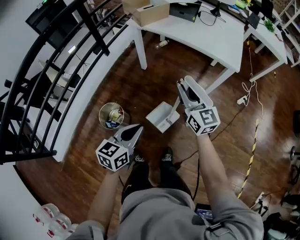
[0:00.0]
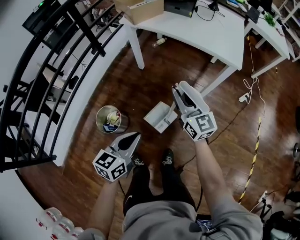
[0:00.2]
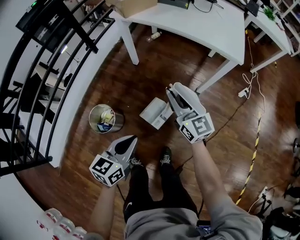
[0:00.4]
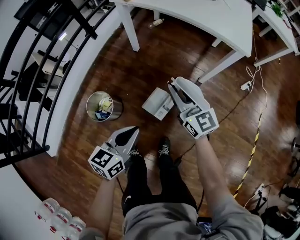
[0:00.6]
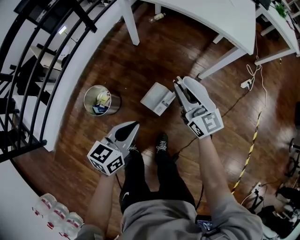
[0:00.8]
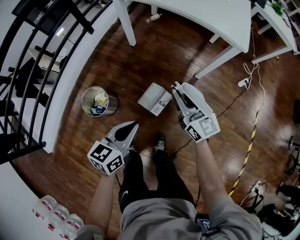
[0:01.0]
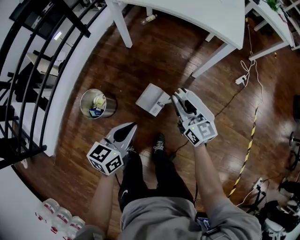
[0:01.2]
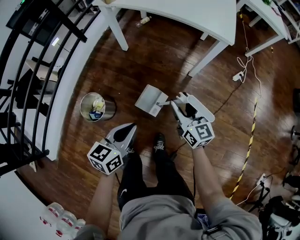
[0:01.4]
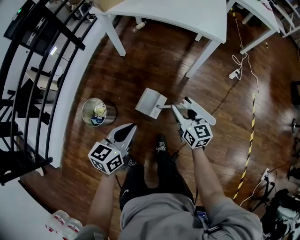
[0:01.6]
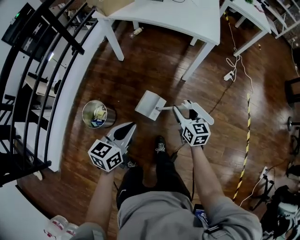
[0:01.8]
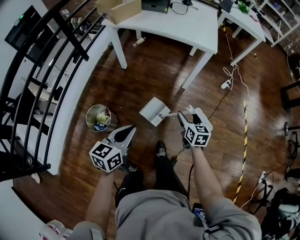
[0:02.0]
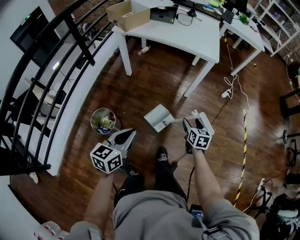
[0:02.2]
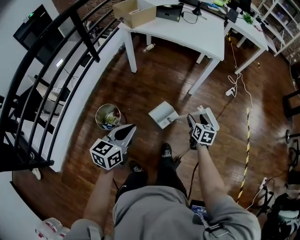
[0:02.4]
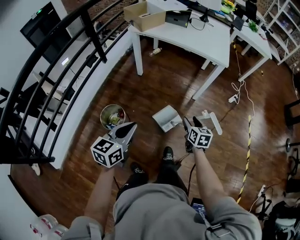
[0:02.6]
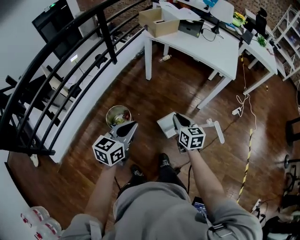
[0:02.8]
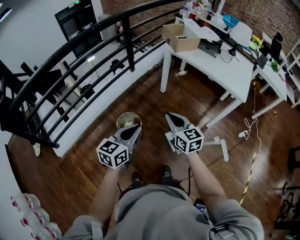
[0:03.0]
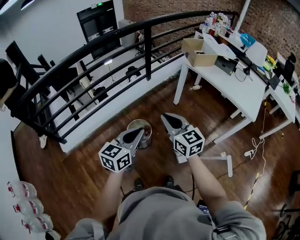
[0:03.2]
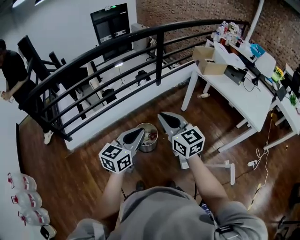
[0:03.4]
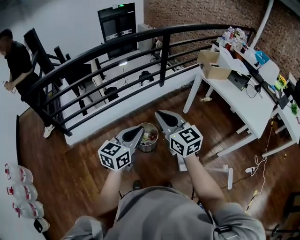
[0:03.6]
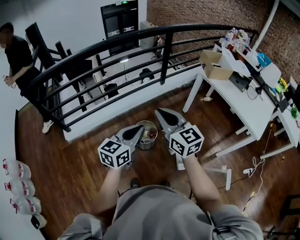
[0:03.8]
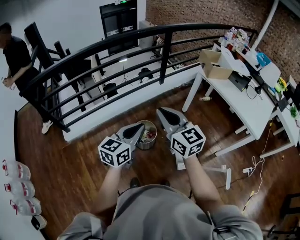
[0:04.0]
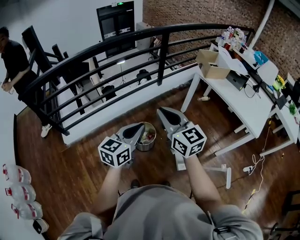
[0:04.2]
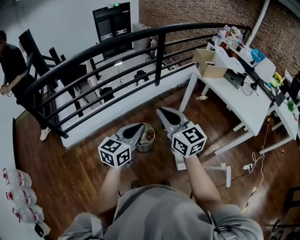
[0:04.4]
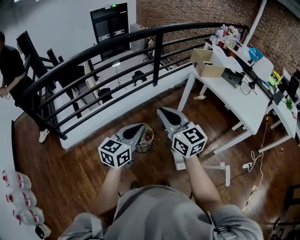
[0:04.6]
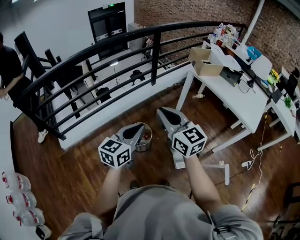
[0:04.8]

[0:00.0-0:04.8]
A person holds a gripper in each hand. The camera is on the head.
0:00.0 to 0:01.6: The left gripper goes approximately 10 cm to the right and downward, while the right gripper travels downward, to the right and backward by approximately 25 cm, swivels approximately 20 degrees, and opens up.
0:01.6 to 0:03.2: The left gripper moves about 35 cm, and changes its angle by roughly 30 degrees, while the right gripper moves about 50 cm, changes its angle by some 40 degrees, and closes up.
0:03.2 to 0:04.8: The right gripper heads upward, covering about 10 cm.

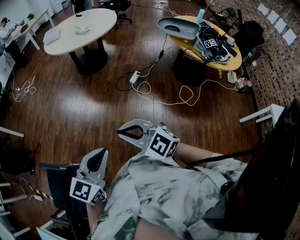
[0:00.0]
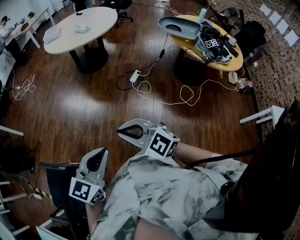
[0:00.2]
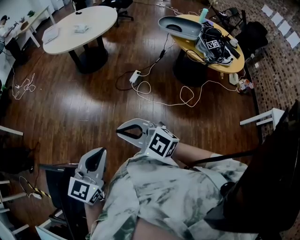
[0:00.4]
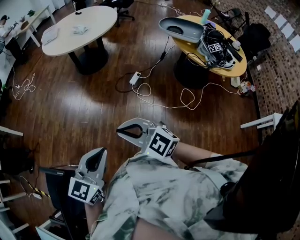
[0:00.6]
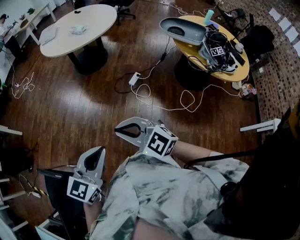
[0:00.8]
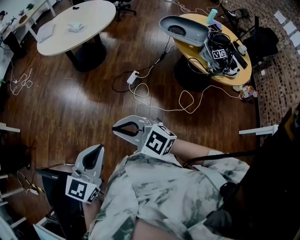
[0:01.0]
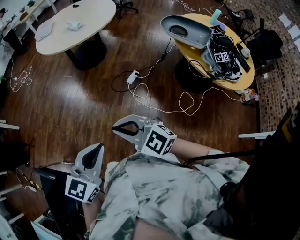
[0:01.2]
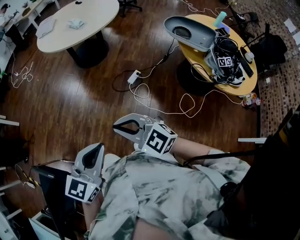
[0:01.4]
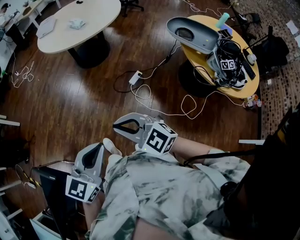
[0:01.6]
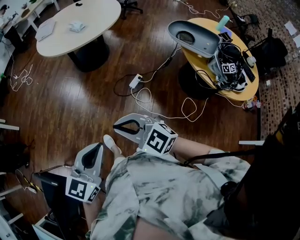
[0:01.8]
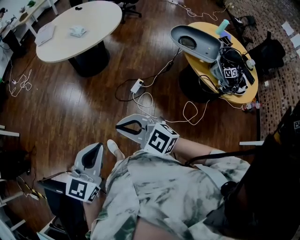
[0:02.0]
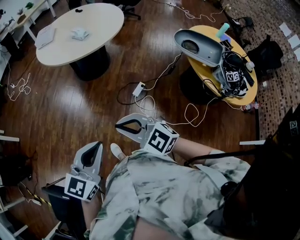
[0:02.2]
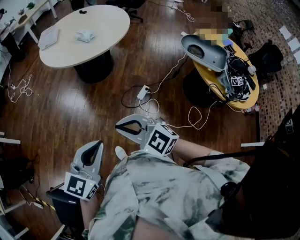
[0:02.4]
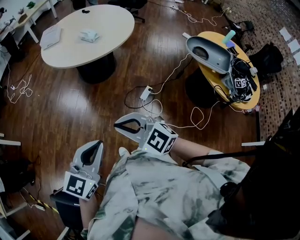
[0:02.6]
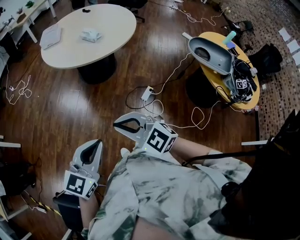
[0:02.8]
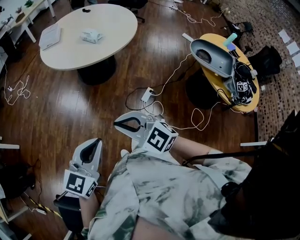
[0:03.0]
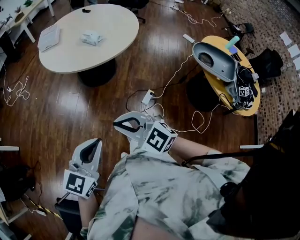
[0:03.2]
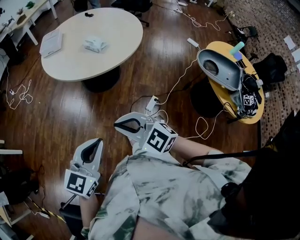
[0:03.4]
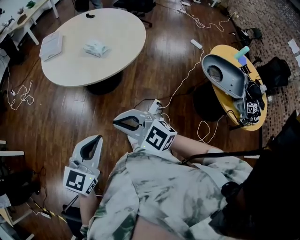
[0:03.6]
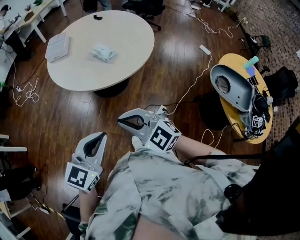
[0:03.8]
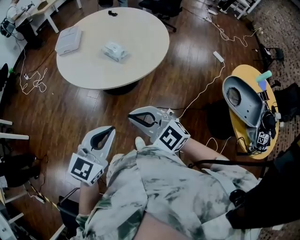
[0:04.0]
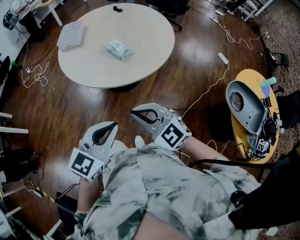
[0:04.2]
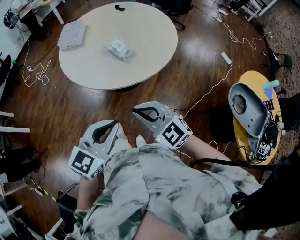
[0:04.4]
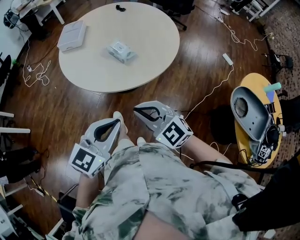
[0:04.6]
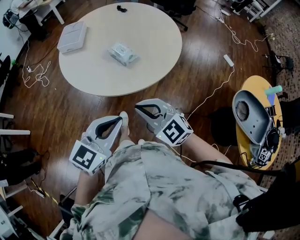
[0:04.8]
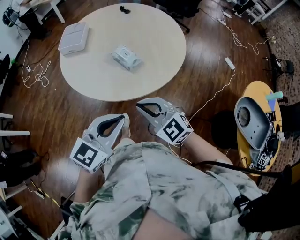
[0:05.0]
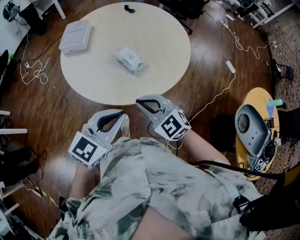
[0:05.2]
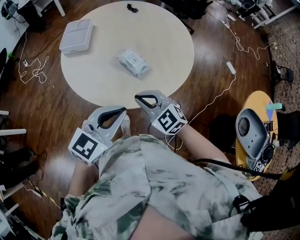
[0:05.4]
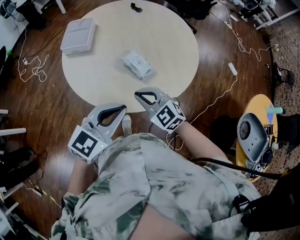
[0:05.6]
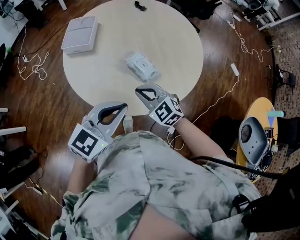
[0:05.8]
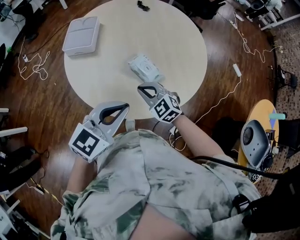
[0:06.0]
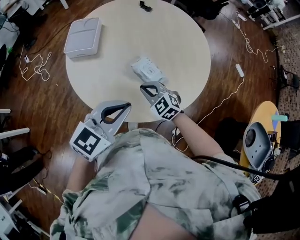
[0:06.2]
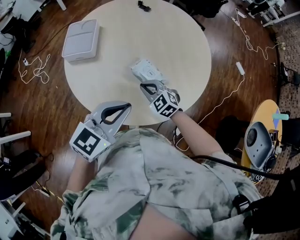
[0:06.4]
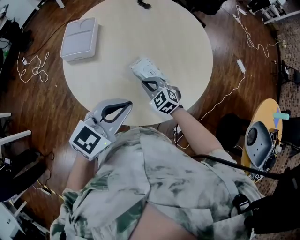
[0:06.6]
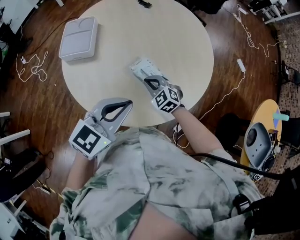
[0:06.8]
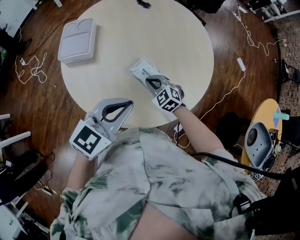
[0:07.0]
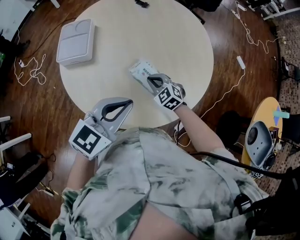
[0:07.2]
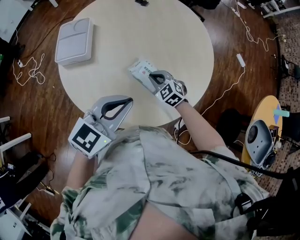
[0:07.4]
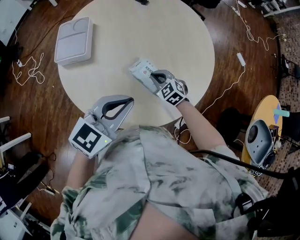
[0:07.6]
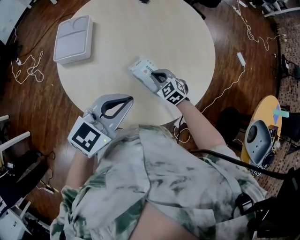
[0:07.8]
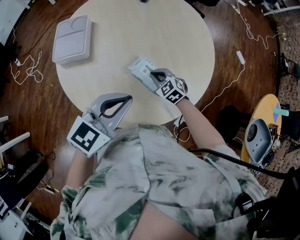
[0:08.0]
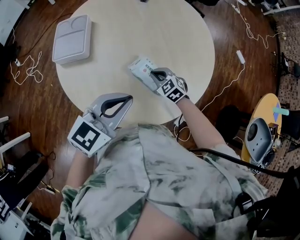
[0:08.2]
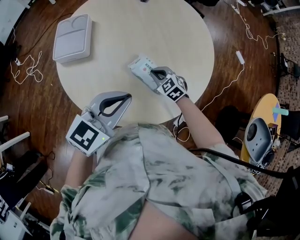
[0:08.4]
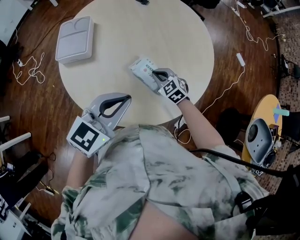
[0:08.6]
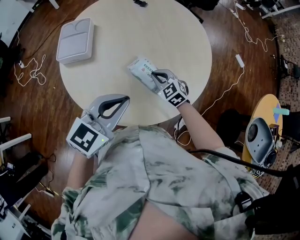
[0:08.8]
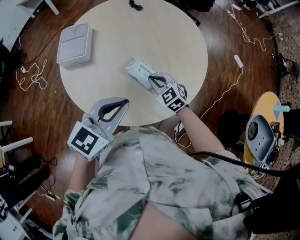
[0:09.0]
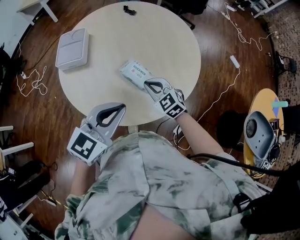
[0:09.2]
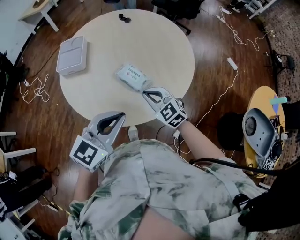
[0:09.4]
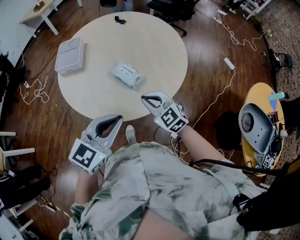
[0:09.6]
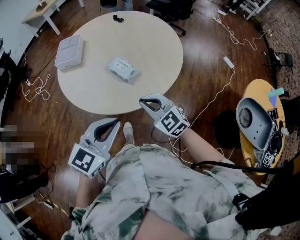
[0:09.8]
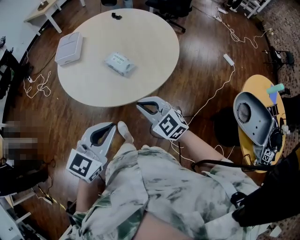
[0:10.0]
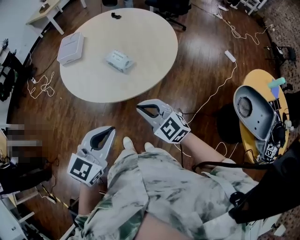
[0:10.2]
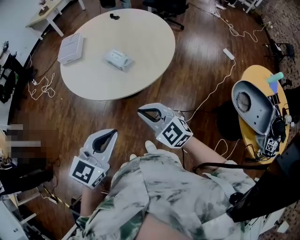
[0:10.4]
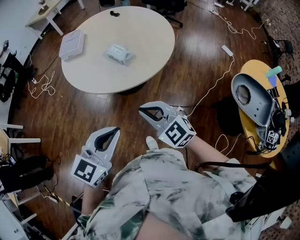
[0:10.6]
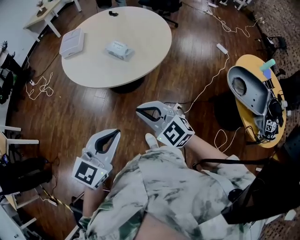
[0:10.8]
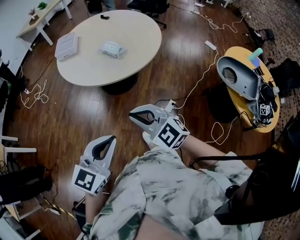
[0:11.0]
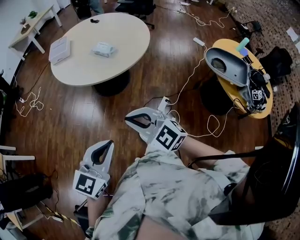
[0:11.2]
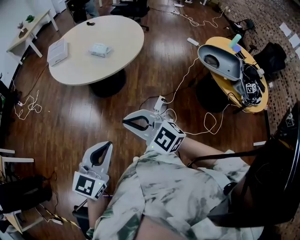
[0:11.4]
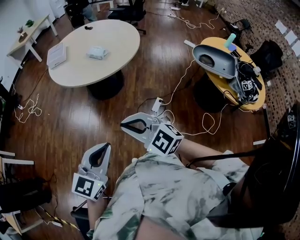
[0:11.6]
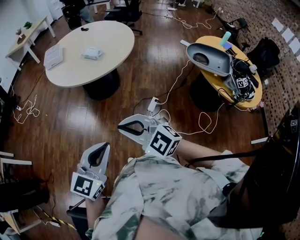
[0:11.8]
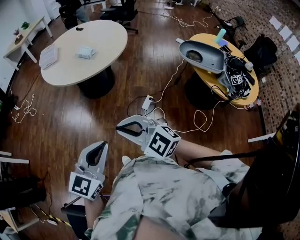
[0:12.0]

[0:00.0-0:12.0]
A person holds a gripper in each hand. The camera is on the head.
0:00.0 to 0:01.6: Both grippers travel together forward and to the right, about 25 cm.
0:01.6 to 0:03.0: Both grippers move forward and to the left, roughly 30 cm.
0:03.0 to 0:04.4: The grippers both shift forward by approximately 30 cm.
0:04.4 to 0:06.0: The right gripper heads forward and downward, covering approximately 35 cm; the left gripper shifts about 30 cm forward.
0:06.0 to 0:07.6: The right gripper moves forward and downward, approximately 15 cm. Meanwhile the left gripper is displaced forward by about 10 cm.
0:07.6 to 0:09.0: The left gripper moves about 5 cm. The right gripper goes about 10 cm upward.
0:09.0 to 0:10.4: The right gripper heads backward and upward, covering about 40 cm; the left gripper heads backward, covering approximately 30 cm.
0:10.4 to 0:12.0: Both grippers move backward, approximately 35 cm.

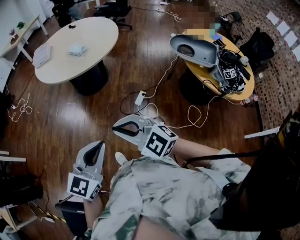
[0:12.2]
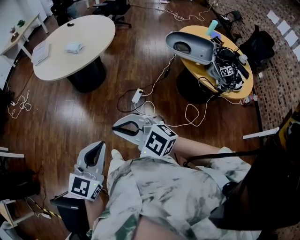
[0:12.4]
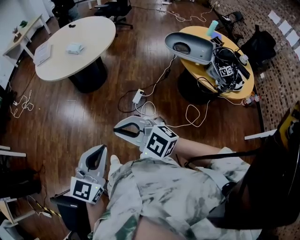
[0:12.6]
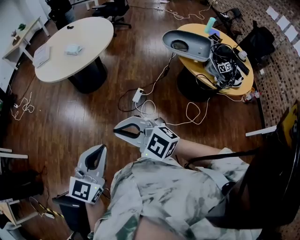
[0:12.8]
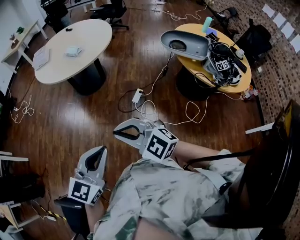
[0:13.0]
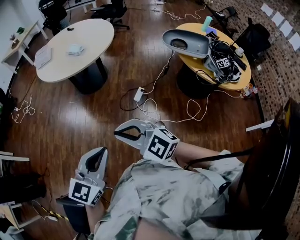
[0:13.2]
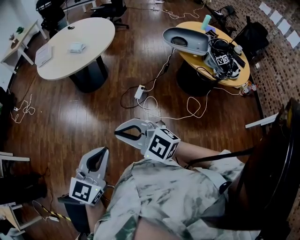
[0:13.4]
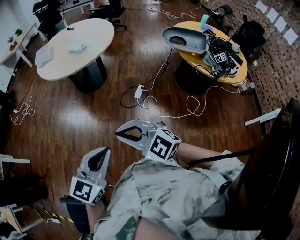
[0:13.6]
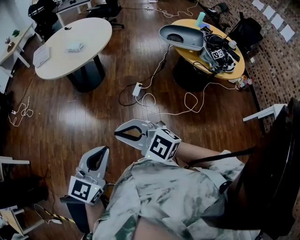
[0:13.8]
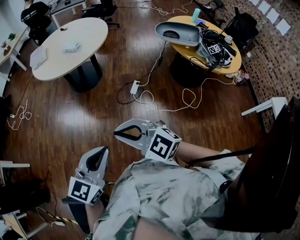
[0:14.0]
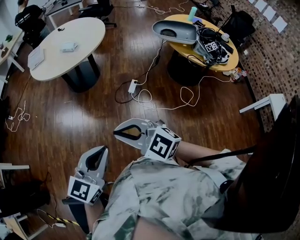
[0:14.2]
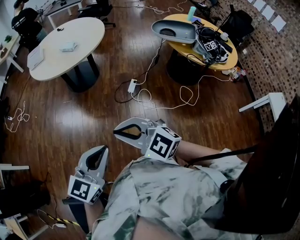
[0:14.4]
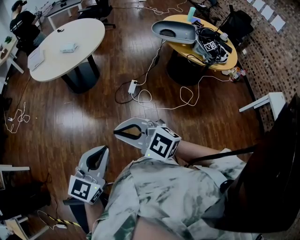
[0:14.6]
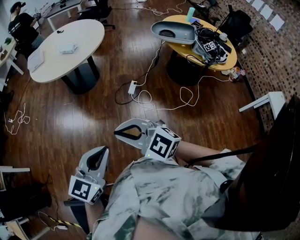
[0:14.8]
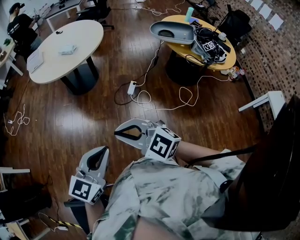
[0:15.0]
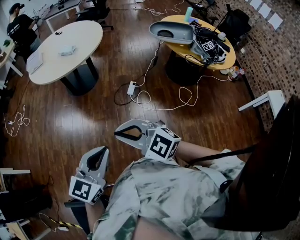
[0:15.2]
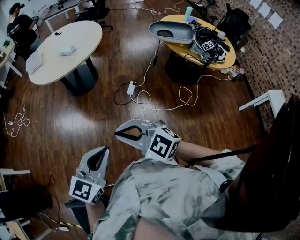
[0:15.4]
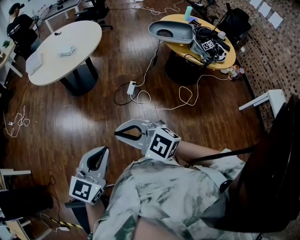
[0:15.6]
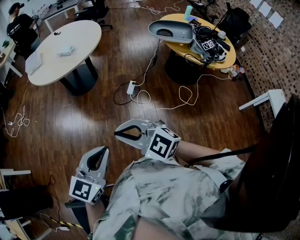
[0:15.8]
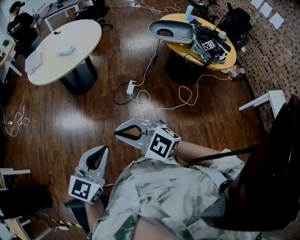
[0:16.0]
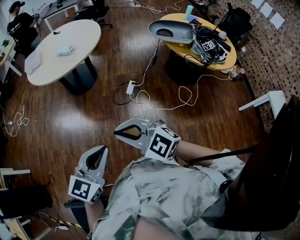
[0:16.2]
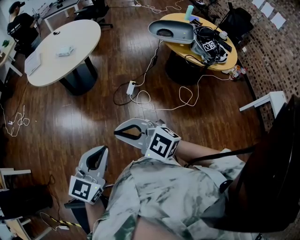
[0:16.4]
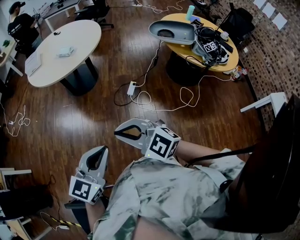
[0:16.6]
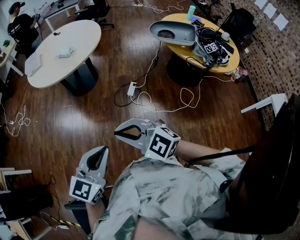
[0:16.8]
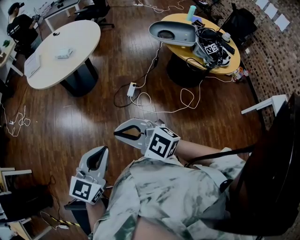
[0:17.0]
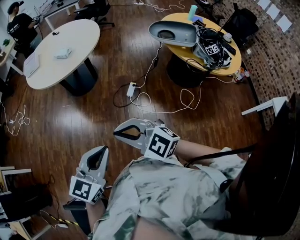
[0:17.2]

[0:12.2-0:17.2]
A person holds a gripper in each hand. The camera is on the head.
0:12.2 to 0:13.8: The right gripper goes roughly 15 cm backward and to the left; the left gripper is displaced backward by some 15 cm.
0:13.8 to 0:15.6: The grippers stay close to where they were, moving slightly.
0:15.6 to 0:17.2: The two grippers go about 10 cm to the right and forward.

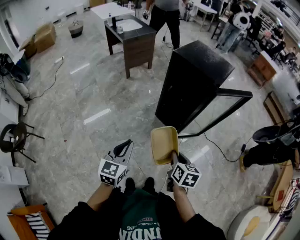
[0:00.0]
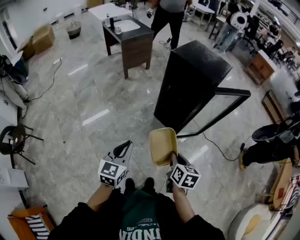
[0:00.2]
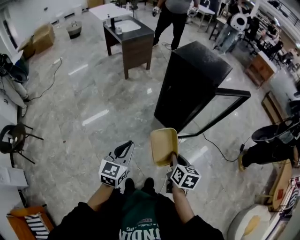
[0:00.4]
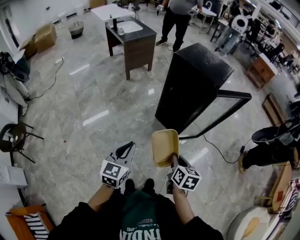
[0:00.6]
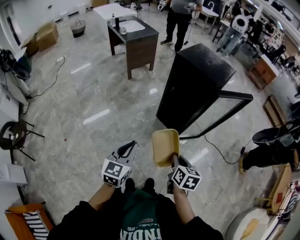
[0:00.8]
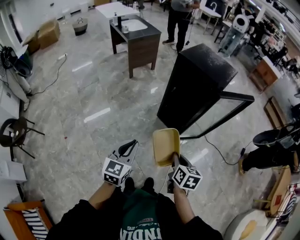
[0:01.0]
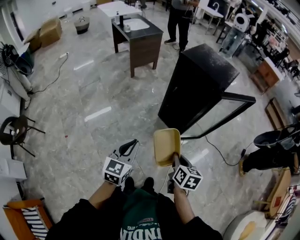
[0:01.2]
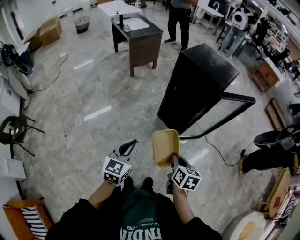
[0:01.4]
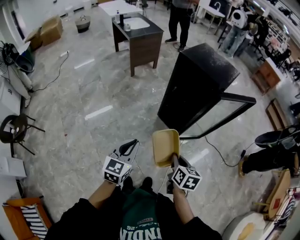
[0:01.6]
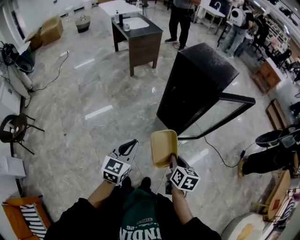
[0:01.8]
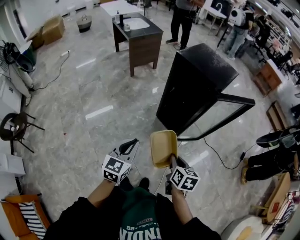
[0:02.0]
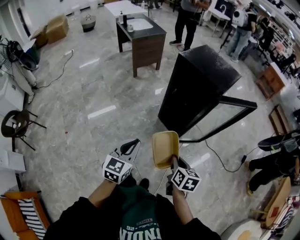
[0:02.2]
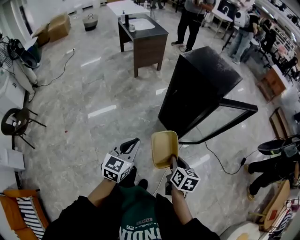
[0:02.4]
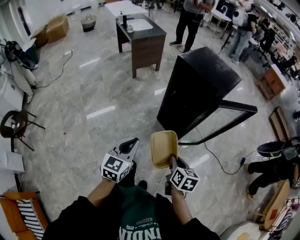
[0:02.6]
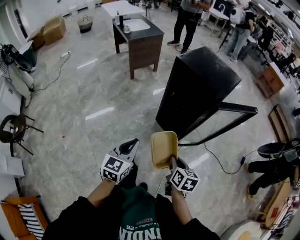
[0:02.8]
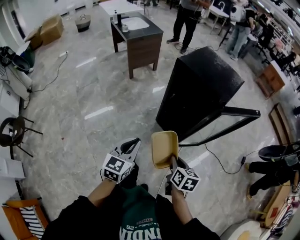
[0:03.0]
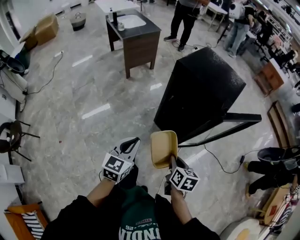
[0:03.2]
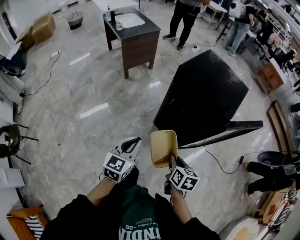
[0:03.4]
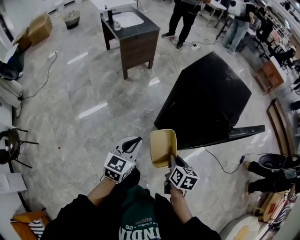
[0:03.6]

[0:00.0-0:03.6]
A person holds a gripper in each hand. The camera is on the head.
0:00.0 to 0:01.8: The grippers stay close to where they were, moving slightly.
0:01.8 to 0:03.6: Both grippers travel together forward, about 25 cm.
